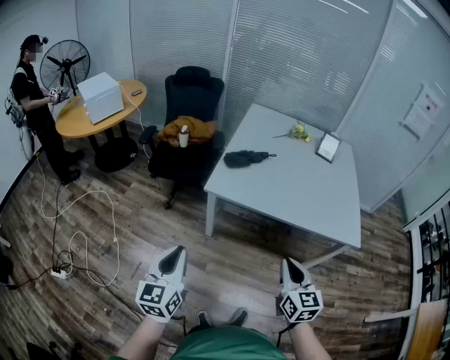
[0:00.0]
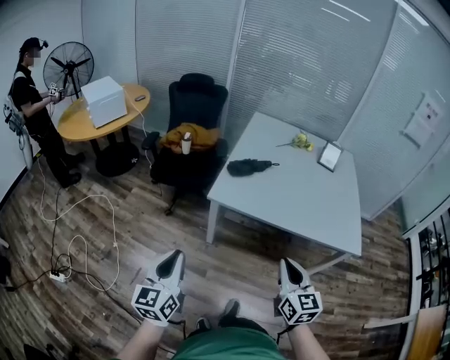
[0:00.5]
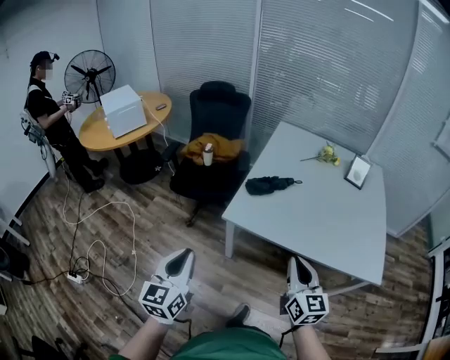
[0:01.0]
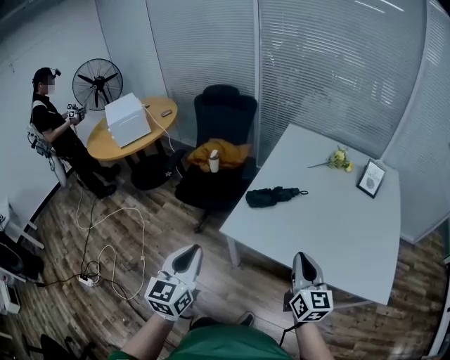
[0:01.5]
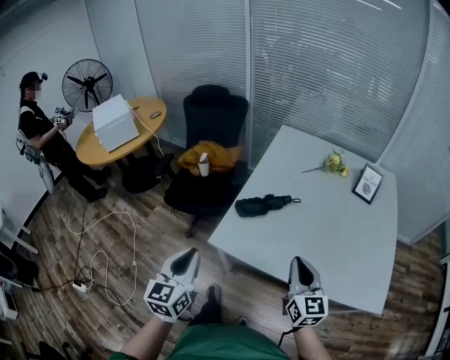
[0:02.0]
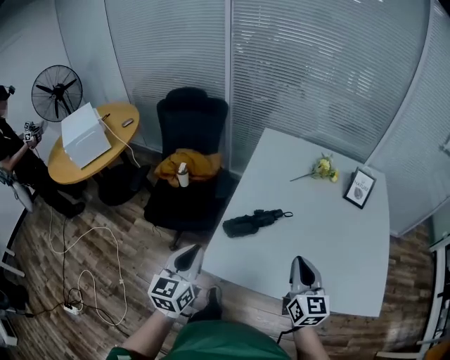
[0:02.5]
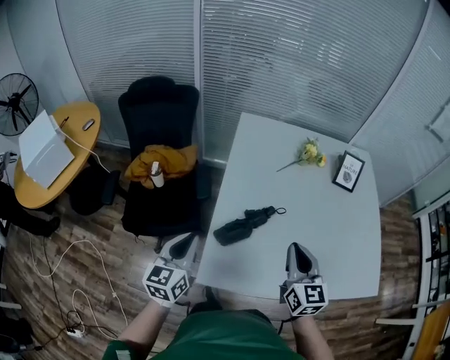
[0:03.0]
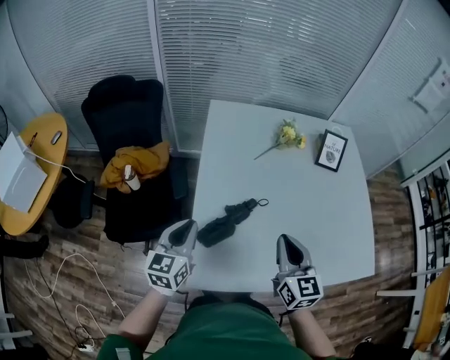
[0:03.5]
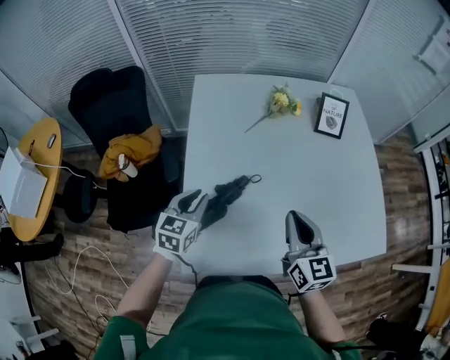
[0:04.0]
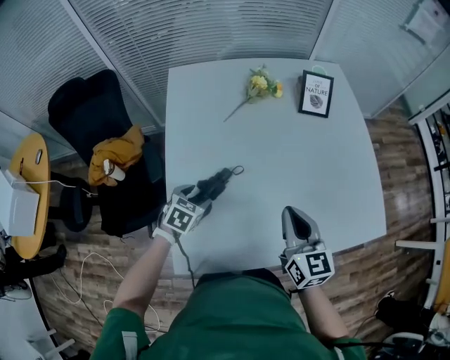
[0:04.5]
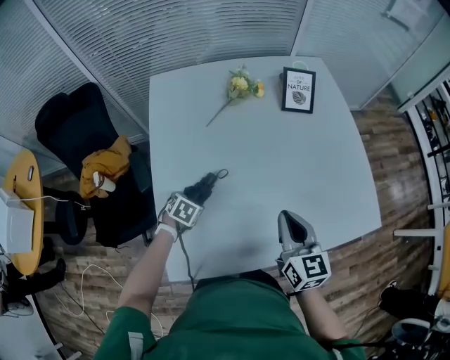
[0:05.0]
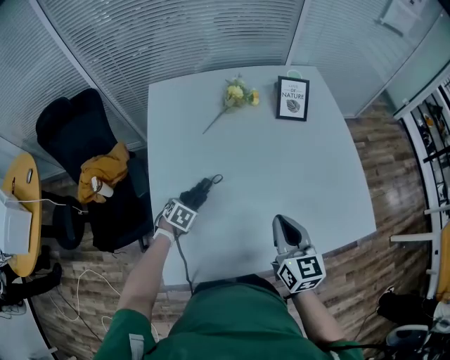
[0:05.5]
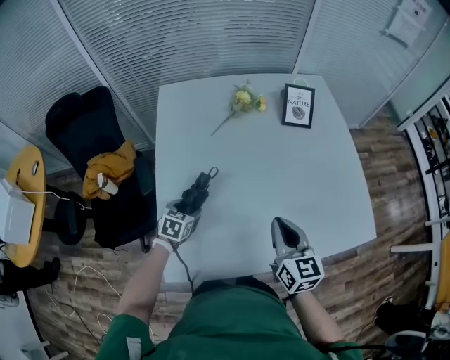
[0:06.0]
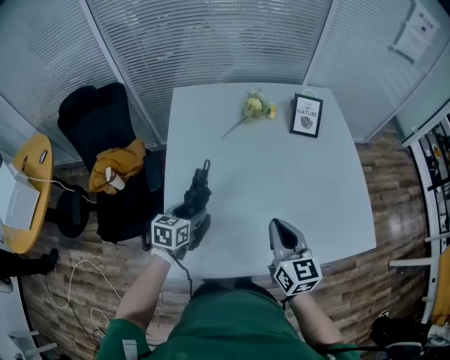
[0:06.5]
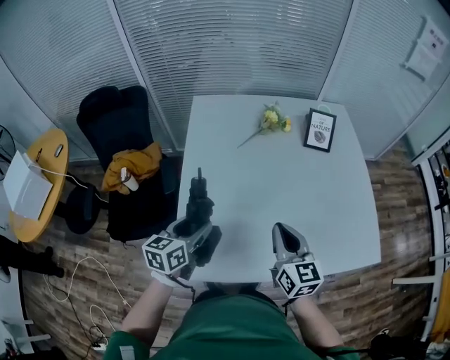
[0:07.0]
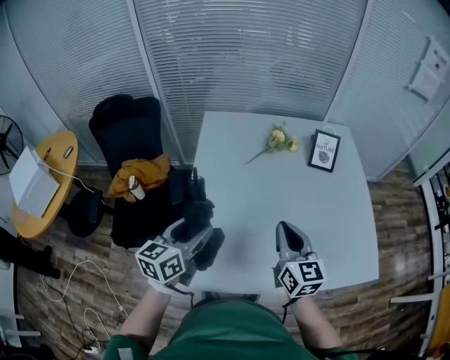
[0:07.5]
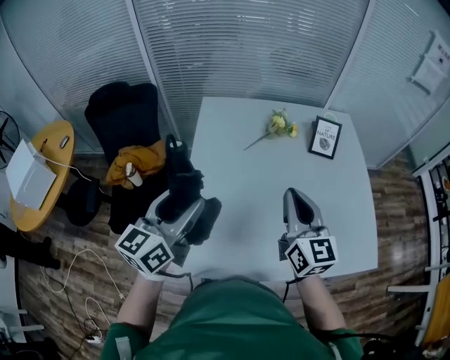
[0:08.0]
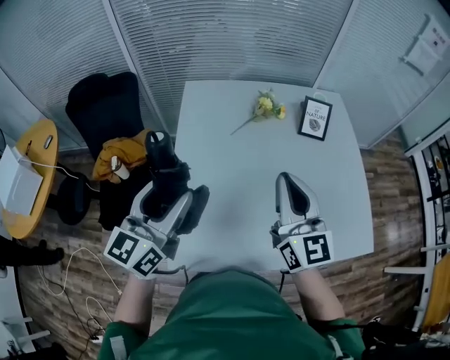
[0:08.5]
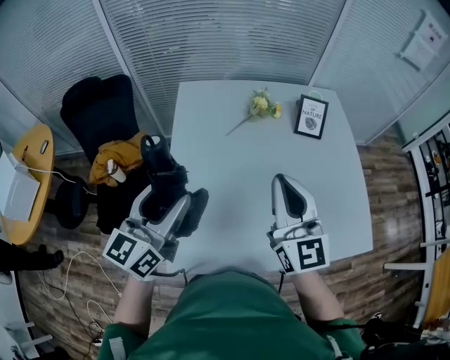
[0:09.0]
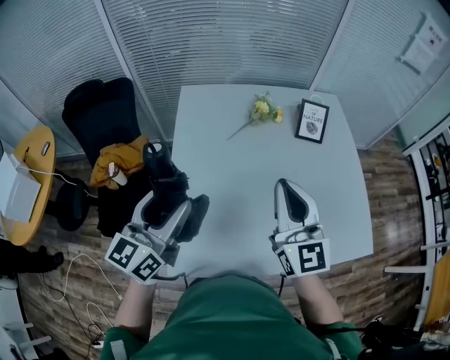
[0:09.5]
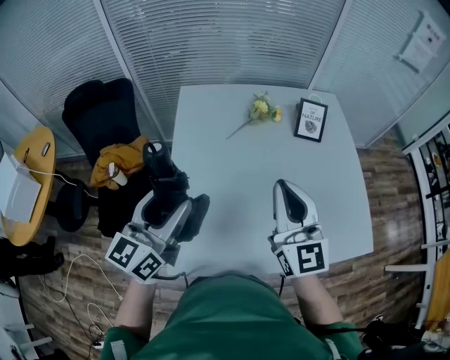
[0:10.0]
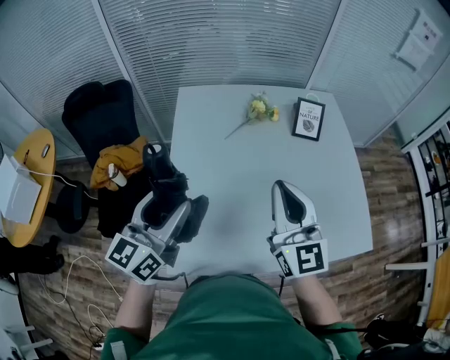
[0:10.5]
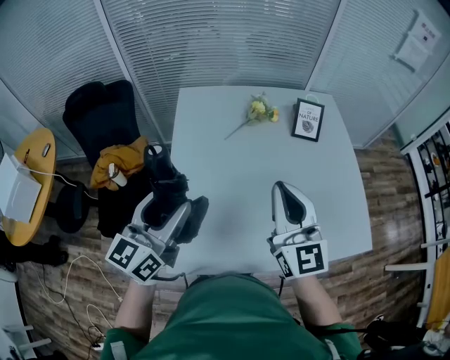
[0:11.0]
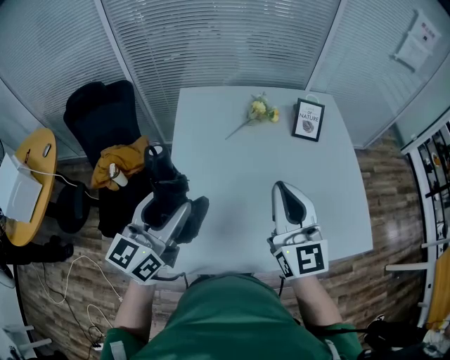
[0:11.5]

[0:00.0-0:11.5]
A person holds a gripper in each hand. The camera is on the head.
0:00.0 to 0:02.0: The grippers both shift forward by approximately 30 cm.
0:02.0 to 0:04.0: The left gripper changes place by some 40 cm, and turns by about 40 degrees, while the right gripper shifts by about 25 cm, and changes its angle by about 20 degrees.
0:04.0 to 0:06.0: The right gripper heads to the right, covering roughly 10 cm. Meanwhile the left gripper shifts some 15 cm downward and to the right, rotates roughly 20 degrees, and opens its fingers.
0:06.0 to 0:07.5: The right gripper heads upward and to the left, covering approximately 10 cm; the left gripper shifts about 25 cm upward, and tilts its fingers roughly 40 degrees upward.
0:07.5 to 0:09.5: Both grippers travel together upward, approximately 10 cm. The right gripper changes its angle by roughly 20 degrees.
0:09.5 to 0:11.5: The grippers move only a little.

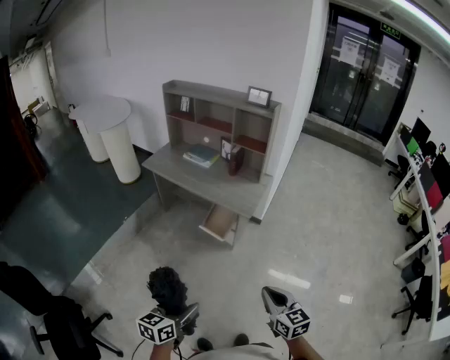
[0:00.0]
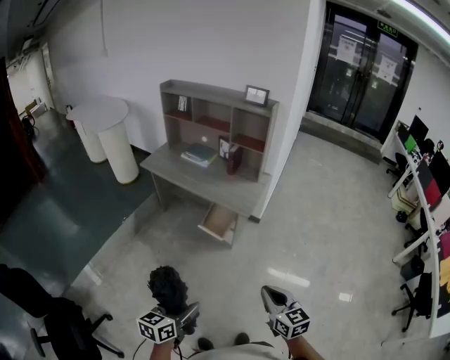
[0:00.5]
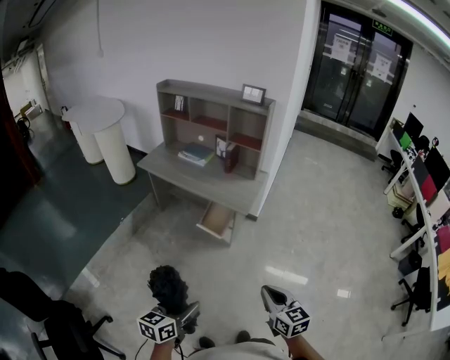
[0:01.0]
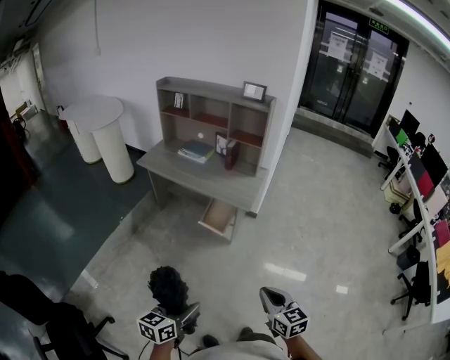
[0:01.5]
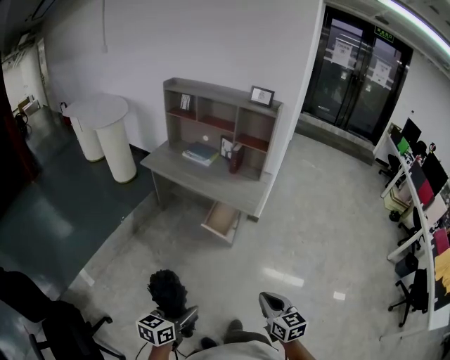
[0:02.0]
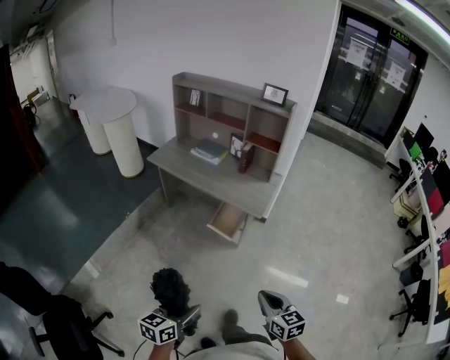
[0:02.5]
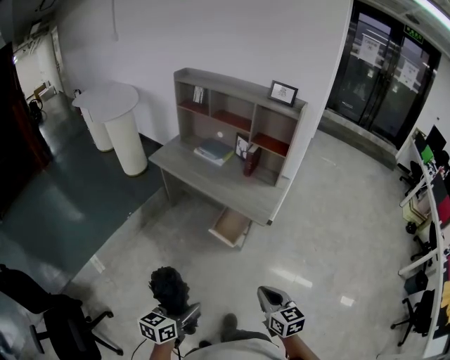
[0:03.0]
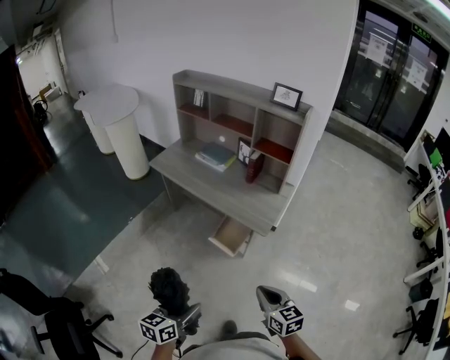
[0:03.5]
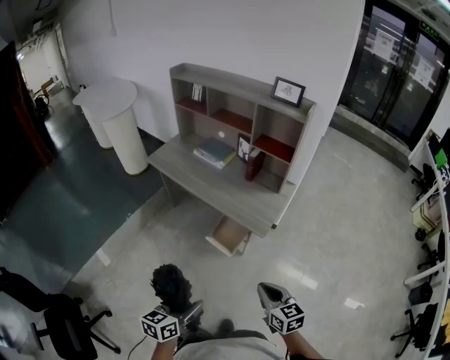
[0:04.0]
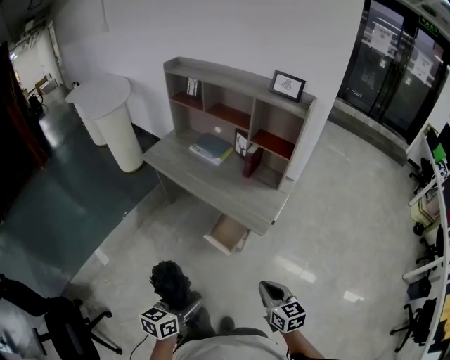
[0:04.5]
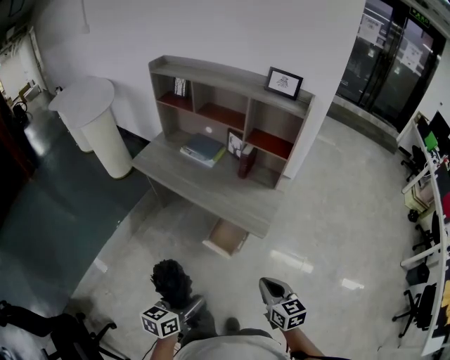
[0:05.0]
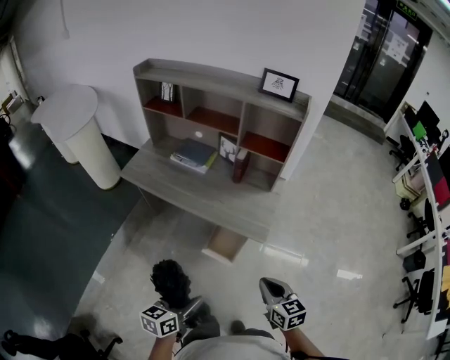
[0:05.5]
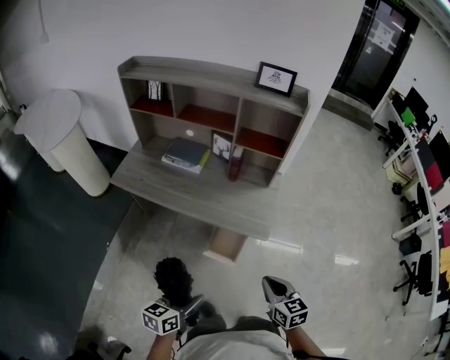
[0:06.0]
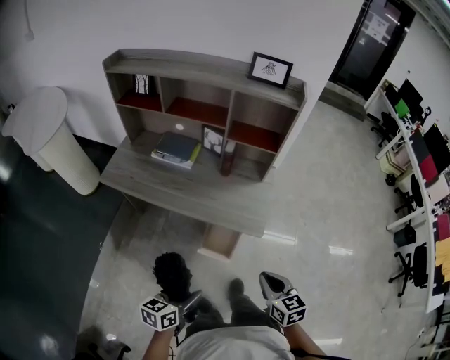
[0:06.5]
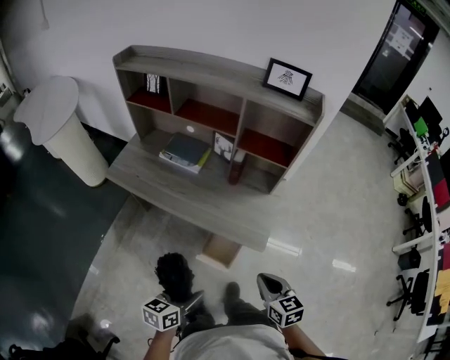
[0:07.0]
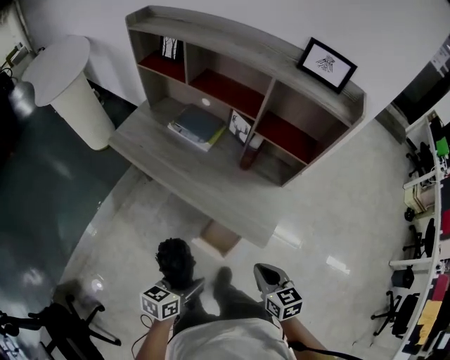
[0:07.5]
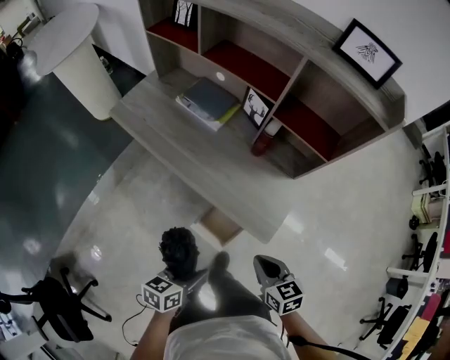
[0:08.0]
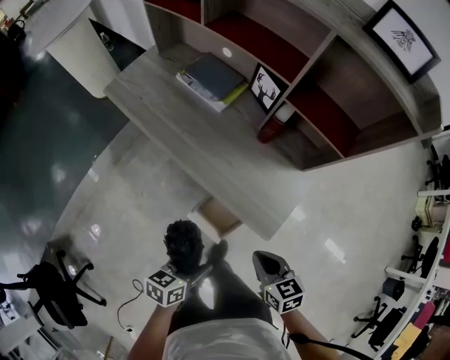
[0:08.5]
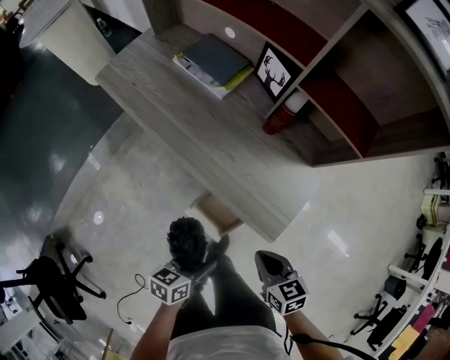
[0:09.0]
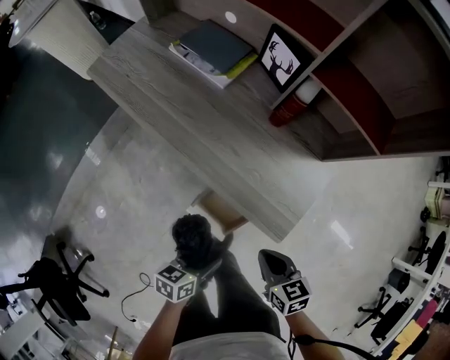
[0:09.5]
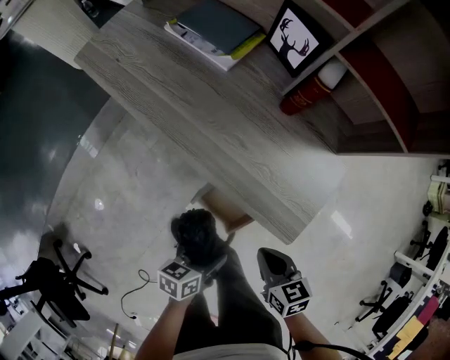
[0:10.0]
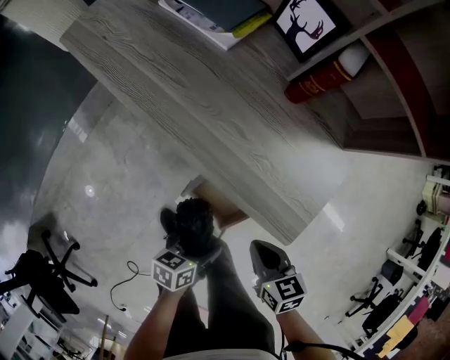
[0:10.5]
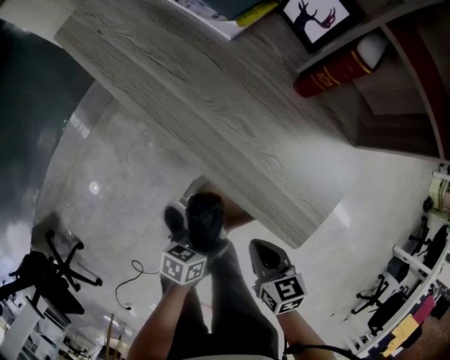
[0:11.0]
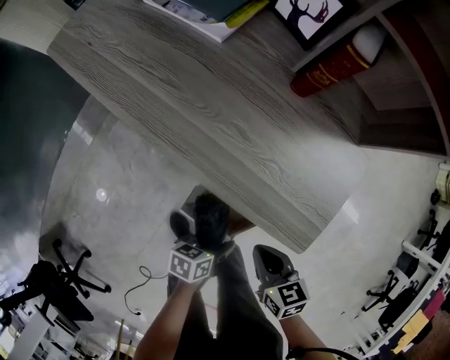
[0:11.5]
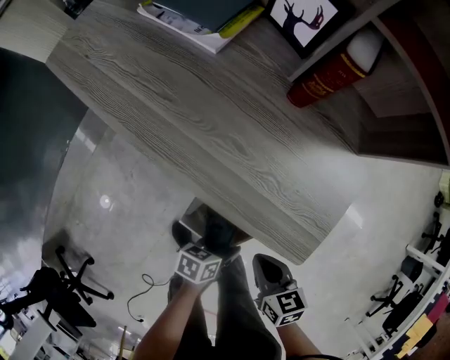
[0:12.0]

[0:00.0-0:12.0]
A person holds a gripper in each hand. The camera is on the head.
0:00.0 to 0:02.0: The grippers both shift to the left by approximately 5 cm.
0:02.0 to 0:04.0: Both grippers travel together forward, approximately 30 cm.
0:04.0 to 0:06.0: The two grippers go roughly 20 cm forward and to the left. The left gripper rotates roughly 20 degrees, while the right gripper changes its angle by approximately 20 degrees.
0:06.0 to 0:08.0: The left gripper shifts approximately 20 cm forward, downward and to the right; the right gripper heads forward and downward, covering approximately 25 cm, and swivels some 30 degrees.
0:08.0 to 0:10.0: The two grippers go roughly 25 cm downward.
0:10.0 to 0:12.0: The right gripper is displaced downward by approximately 10 cm. The left gripper heads downward, covering roughly 15 cm.

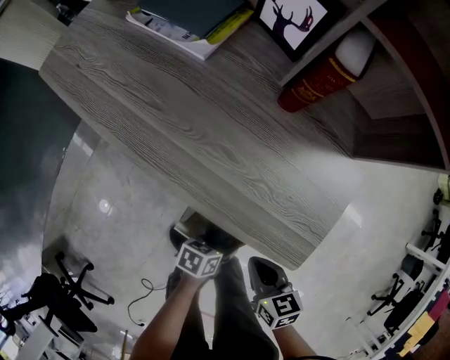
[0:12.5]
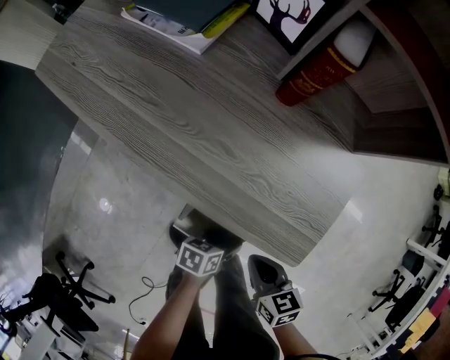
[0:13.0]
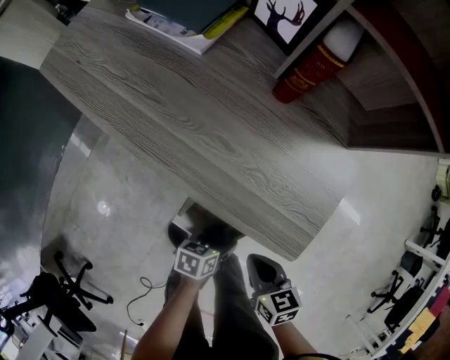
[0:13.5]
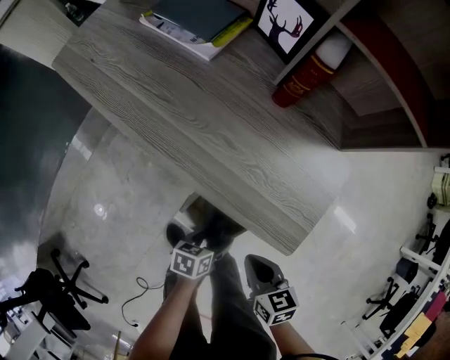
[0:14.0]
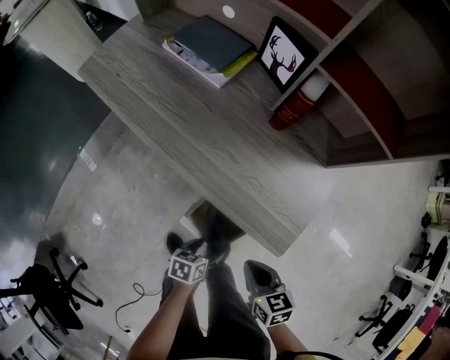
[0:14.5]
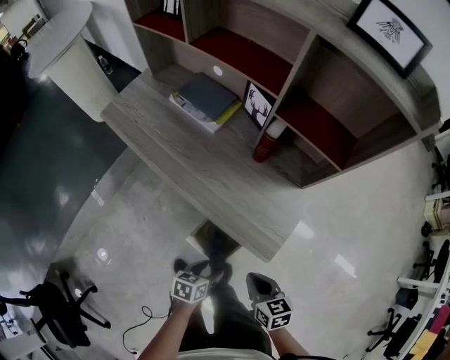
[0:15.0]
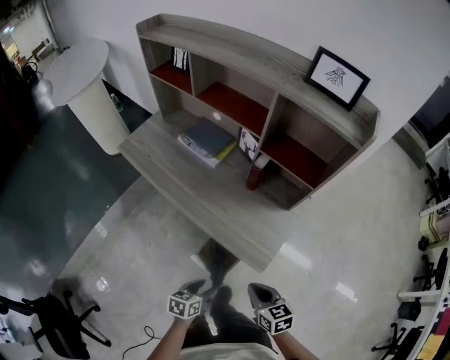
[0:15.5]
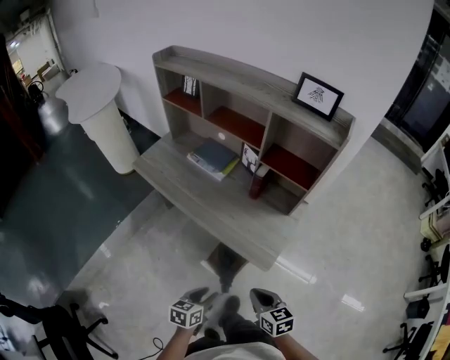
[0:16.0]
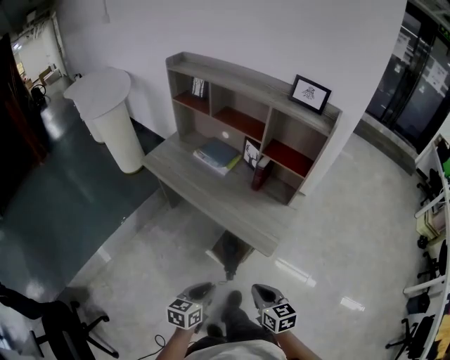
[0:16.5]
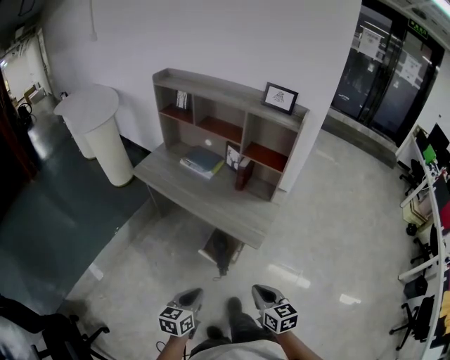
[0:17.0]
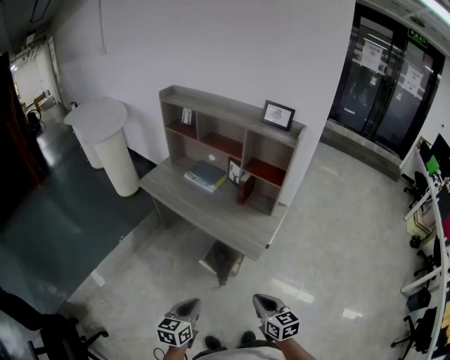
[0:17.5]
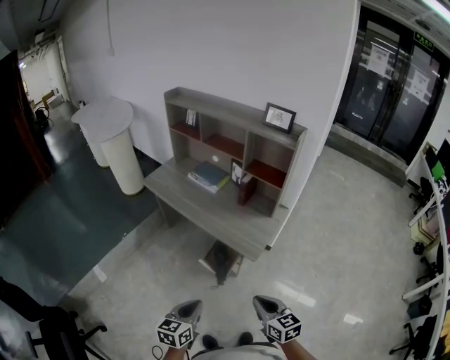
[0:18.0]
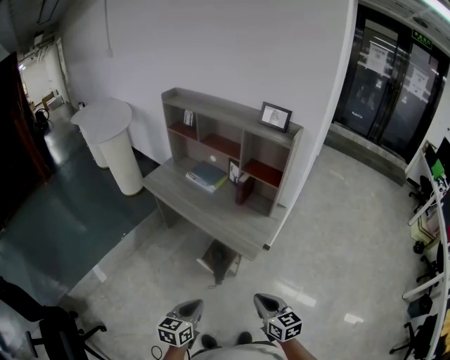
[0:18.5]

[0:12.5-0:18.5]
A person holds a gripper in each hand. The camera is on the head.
0:12.5 to 0:14.5: Both grippers travel together upward, approximately 10 cm.
0:14.5 to 0:16.5: Both grippers travel together upward and backward, approximately 40 cm. The left gripper rotates some 30 degrees, and closes.
0:16.5 to 0:18.5: The right gripper shifts approximately 20 cm backward, upward and to the right, while the left gripper heads backward and upward, covering about 15 cm.
